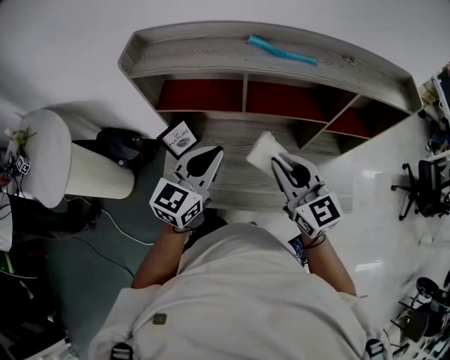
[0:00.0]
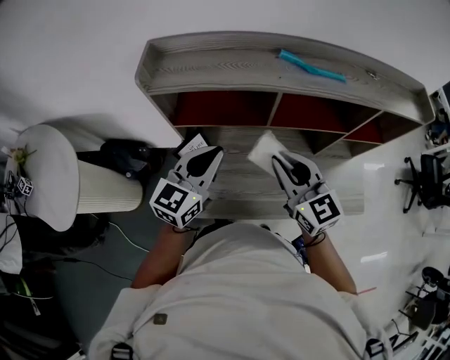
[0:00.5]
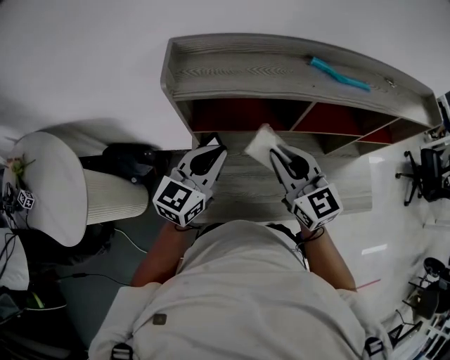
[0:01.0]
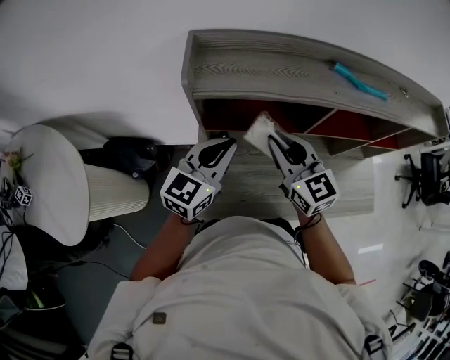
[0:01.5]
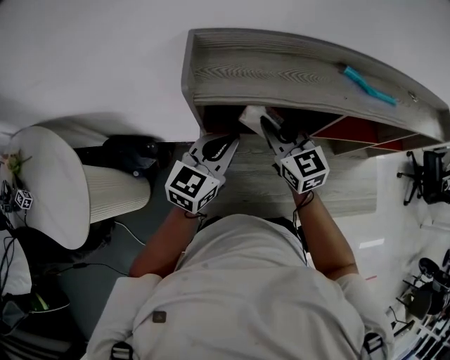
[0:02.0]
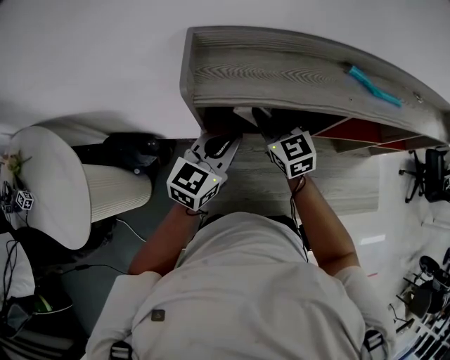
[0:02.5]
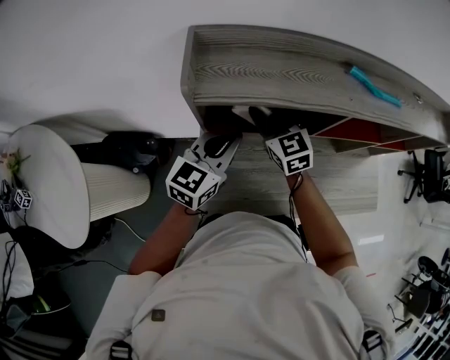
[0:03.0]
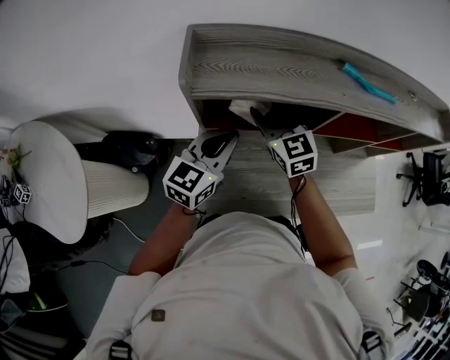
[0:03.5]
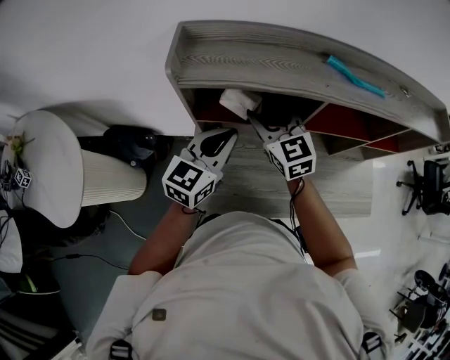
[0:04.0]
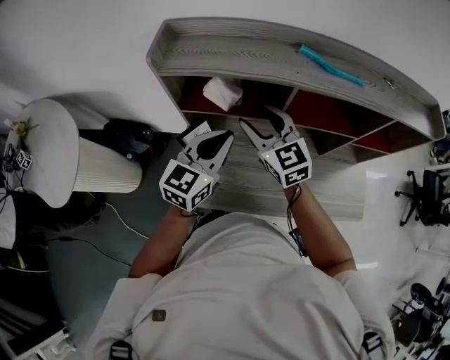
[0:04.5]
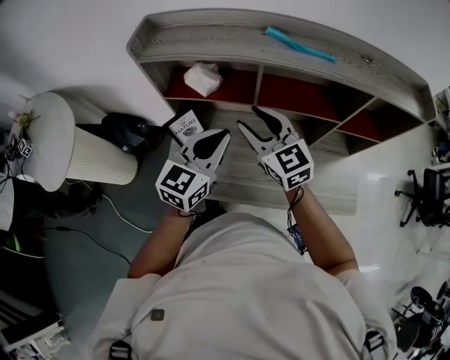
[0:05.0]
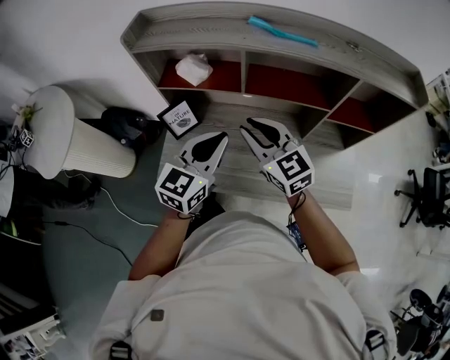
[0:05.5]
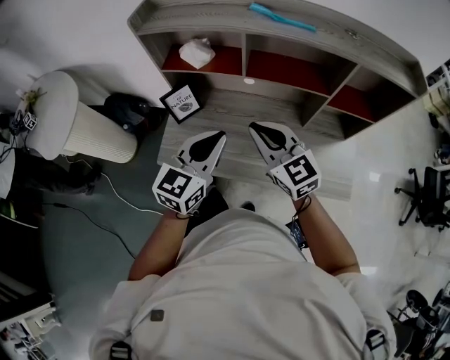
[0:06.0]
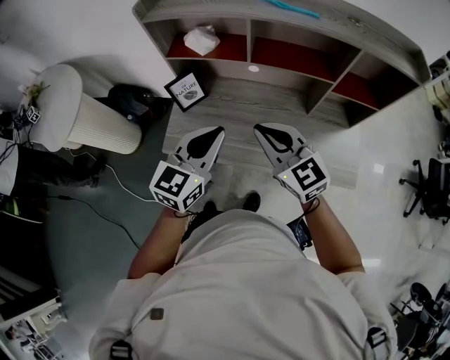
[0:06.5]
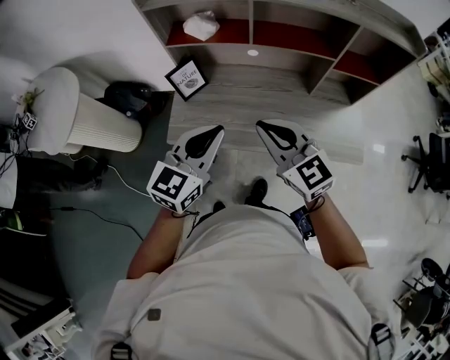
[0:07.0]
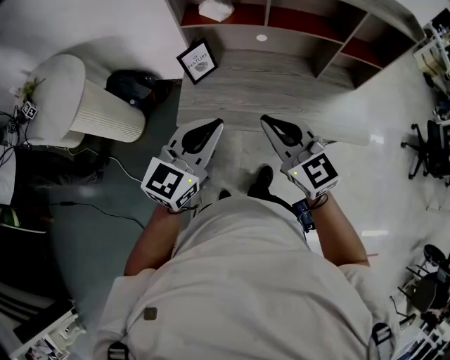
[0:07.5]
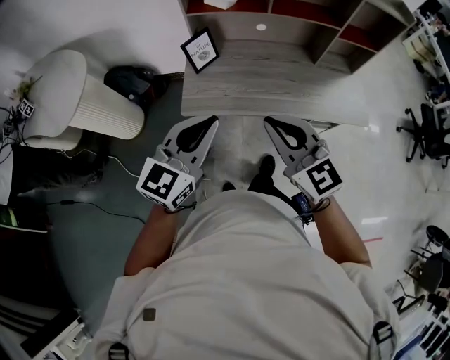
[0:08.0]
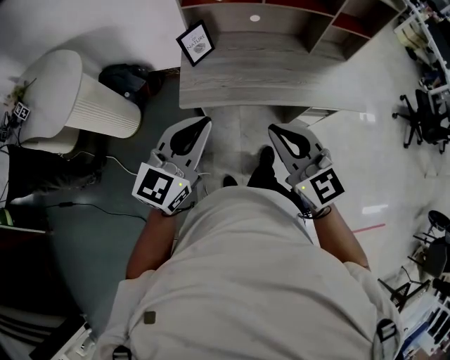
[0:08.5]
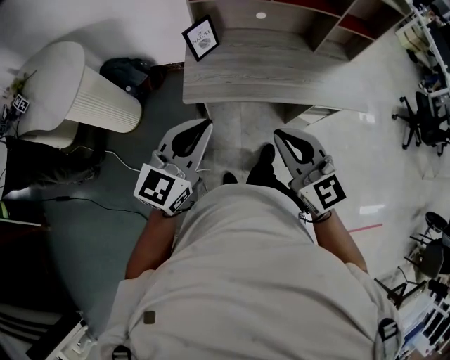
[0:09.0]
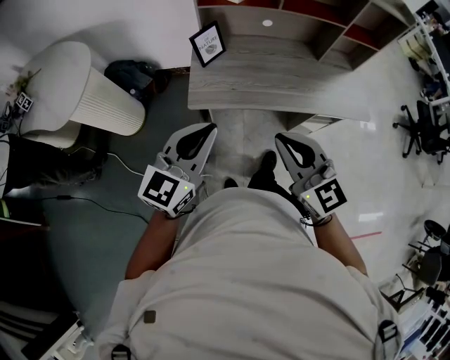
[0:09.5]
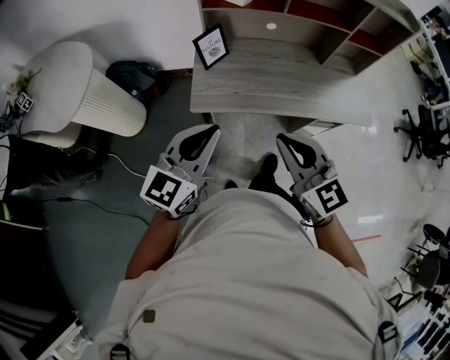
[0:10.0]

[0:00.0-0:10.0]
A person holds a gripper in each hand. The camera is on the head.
0:00.0 to 0:02.0: Both grippers travel together to the left and forward, approximately 25 cm.
0:02.0 to 0:04.0: The right gripper opens its fingers.
0:04.0 to 0:06.0: Both grippers move backward and to the right, about 30 cm. The right gripper closes up.
0:06.0 to 0:08.0: The grippers both shift backward and to the left by about 30 cm.
0:08.0 to 0:10.0: The right gripper ends up roughly 5 cm from where it was. The left gripper goes approximately 5 cm to the left.

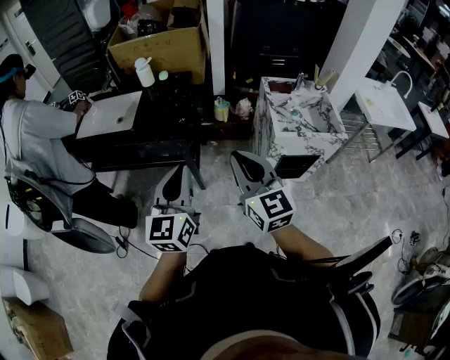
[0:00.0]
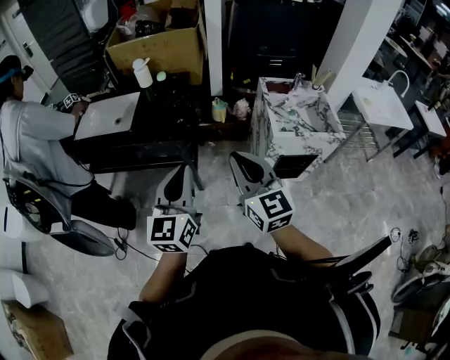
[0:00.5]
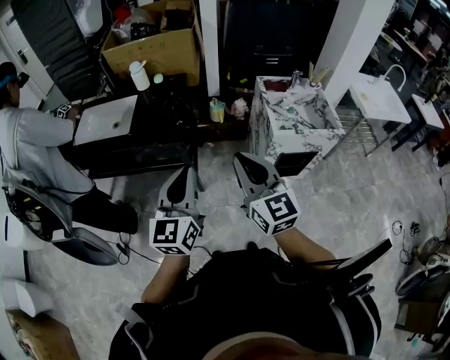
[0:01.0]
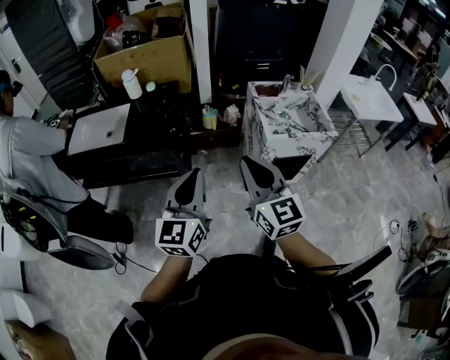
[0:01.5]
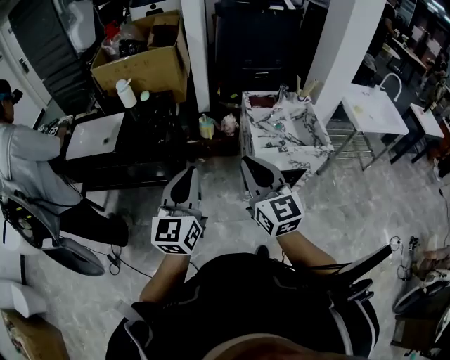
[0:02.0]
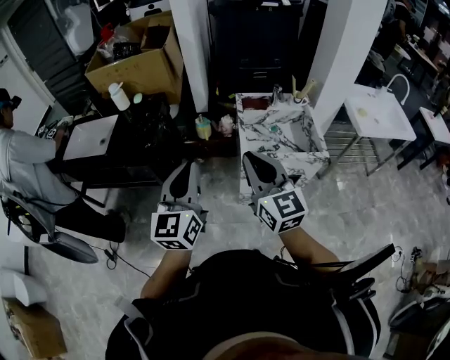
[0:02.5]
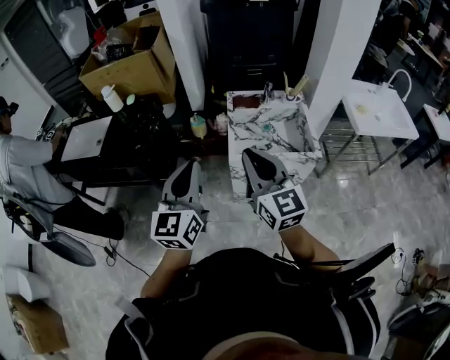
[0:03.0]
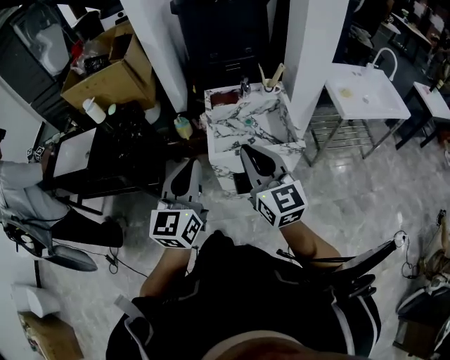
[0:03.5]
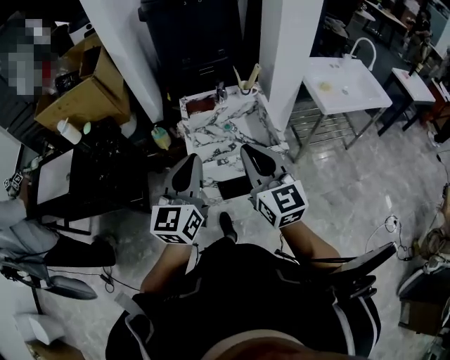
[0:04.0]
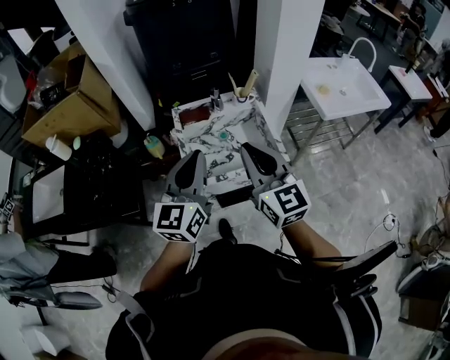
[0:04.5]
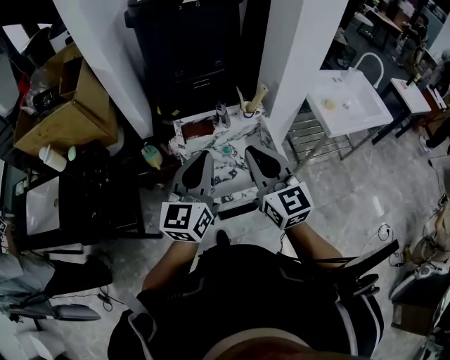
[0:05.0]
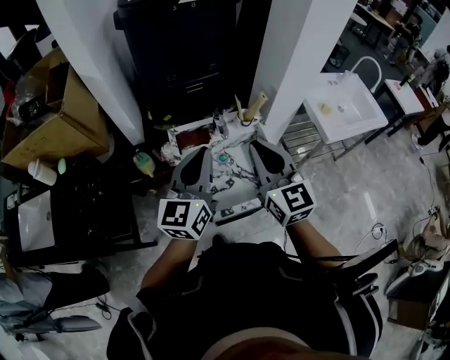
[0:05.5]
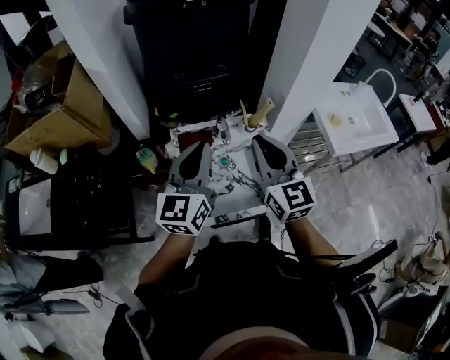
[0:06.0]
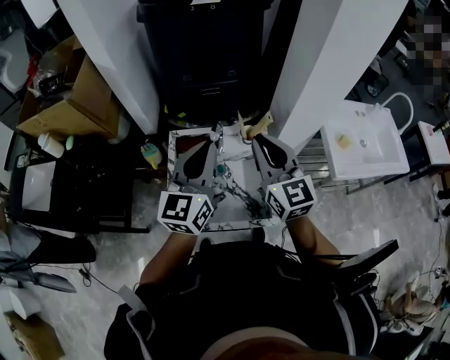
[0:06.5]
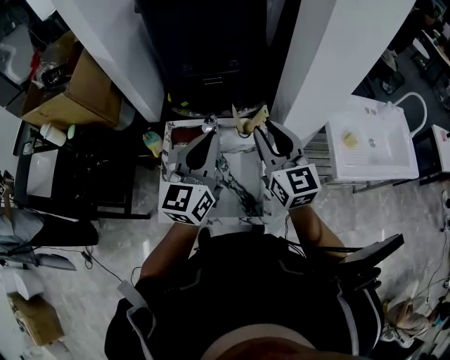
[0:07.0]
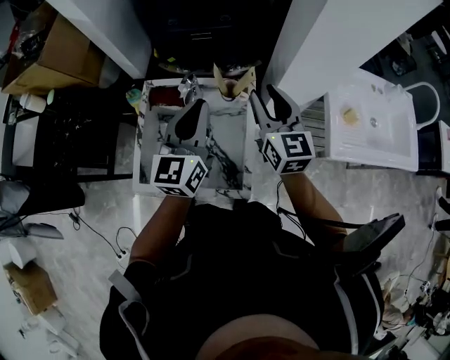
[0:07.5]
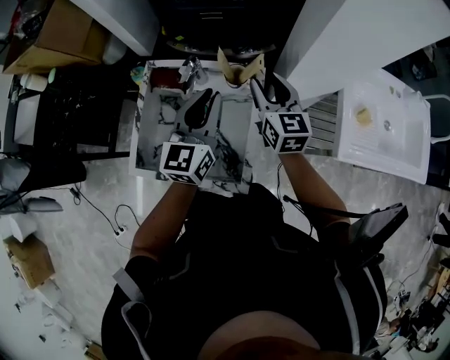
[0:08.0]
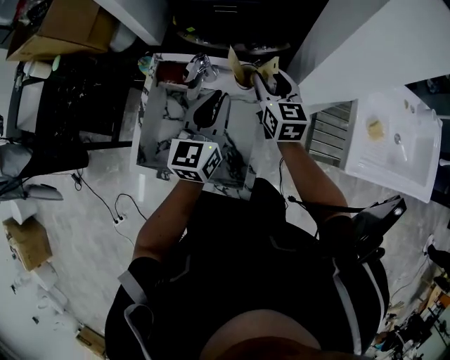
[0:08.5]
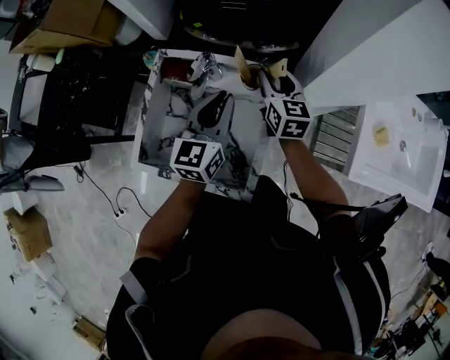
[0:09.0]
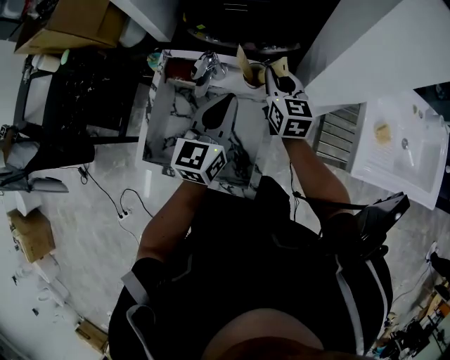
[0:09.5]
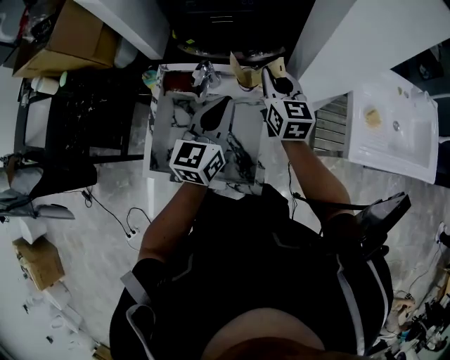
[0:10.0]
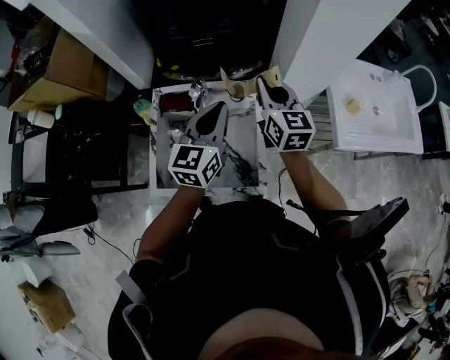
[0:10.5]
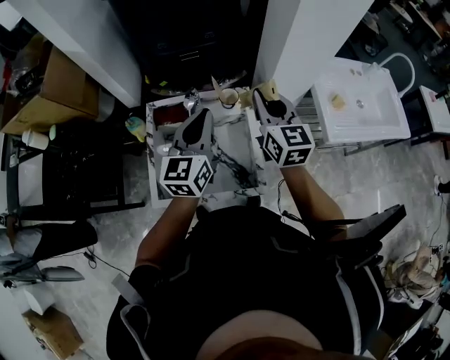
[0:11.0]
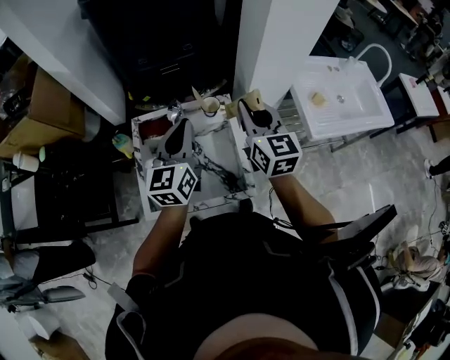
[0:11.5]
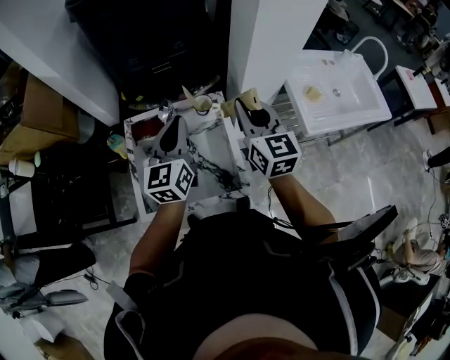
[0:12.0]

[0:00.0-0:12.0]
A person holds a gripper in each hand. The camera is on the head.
0:00.0 to 0:02.0: The two grippers go roughly 10 cm to the right.
0:02.0 to 0:04.0: Both grippers move to the right, some 30 cm.
0:04.0 to 0:06.0: Both grippers travel together forward, roughly 25 cm.
0:06.0 to 0:08.0: The right gripper moves downward, forward and to the right, roughly 30 cm, rotates about 20 degrees, and opens, while the left gripper shifts about 25 cm to the right, downward and forward.
0:08.0 to 0:10.0: The right gripper reaches approximately 10 cm downward, then returns, and closes up.
0:10.0 to 0:12.0: The left gripper is displaced upward by some 5 cm. The right gripper travels backward and upward by some 20 cm.

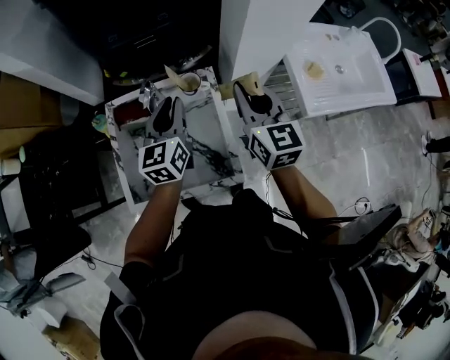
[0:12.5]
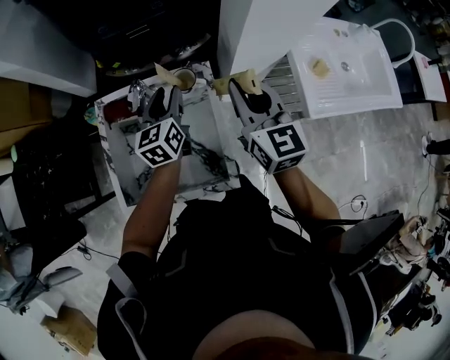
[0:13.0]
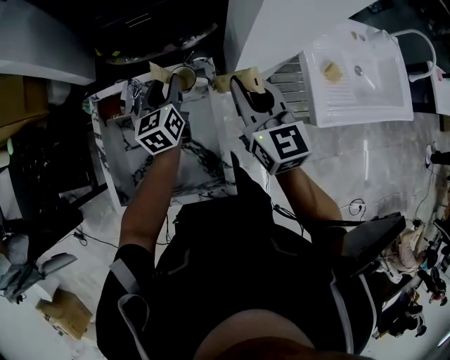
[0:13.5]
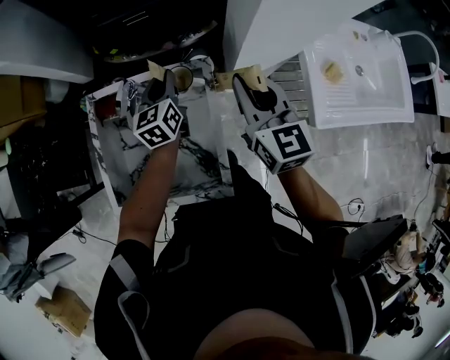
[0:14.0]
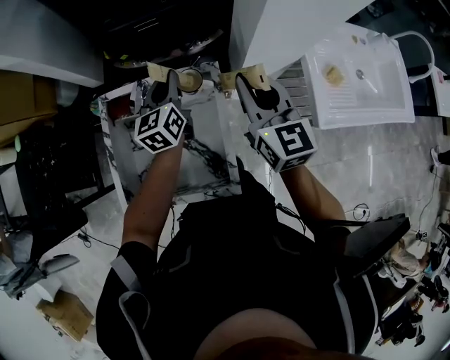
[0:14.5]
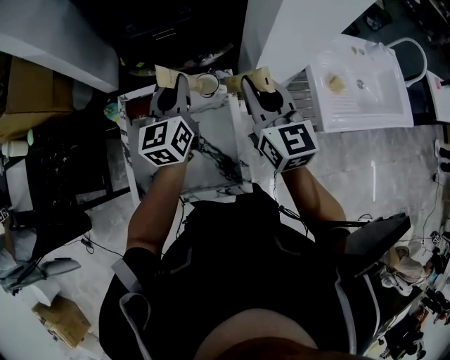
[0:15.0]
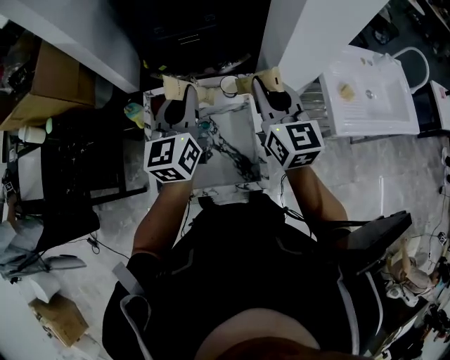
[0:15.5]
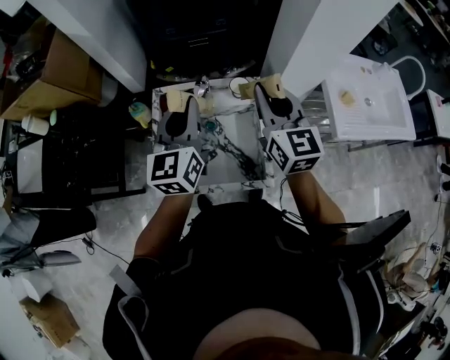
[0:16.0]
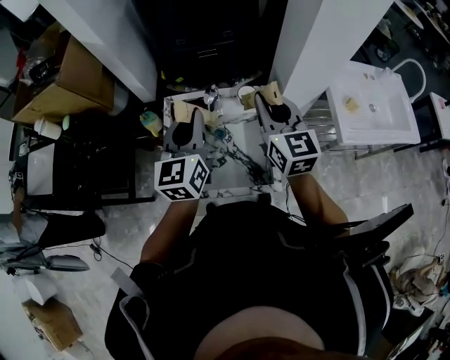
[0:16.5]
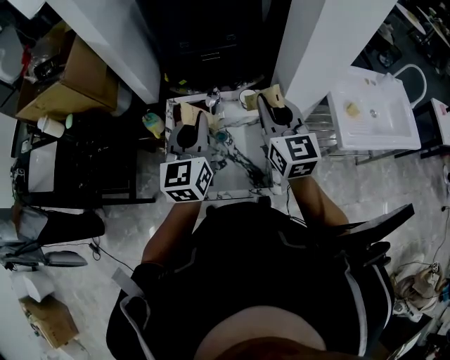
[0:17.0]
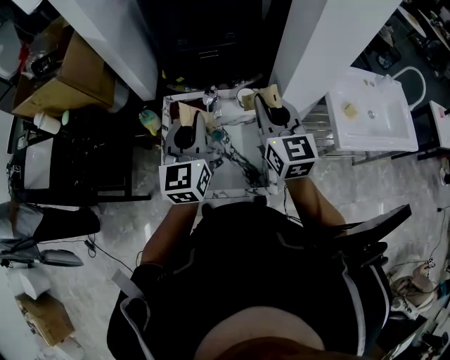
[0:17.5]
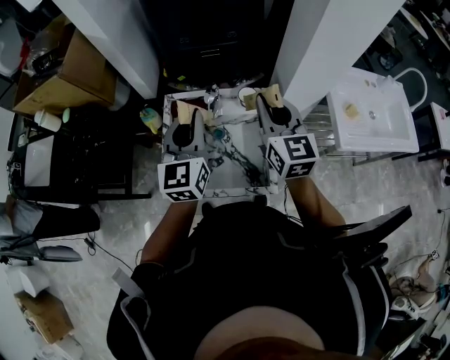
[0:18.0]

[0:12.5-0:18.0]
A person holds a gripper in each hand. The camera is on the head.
0:12.5 to 0:14.5: The right gripper heads forward, covering about 5 cm. The left gripper moves forward and downward, about 15 cm, and opens, then closes again.
0:14.5 to 0:16.0: The left gripper moves upward, backward and to the left, approximately 25 cm, while the right gripper shifts roughly 15 cm to the left, upward and backward.
0:16.0 to 0:18.0: There are only small adjustments of the grippers.
